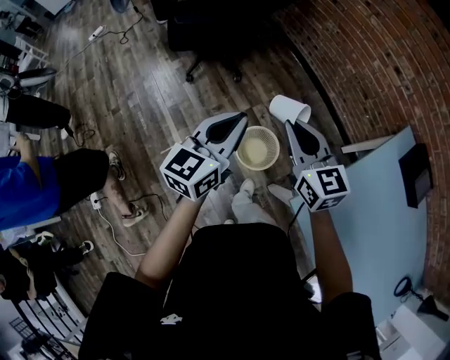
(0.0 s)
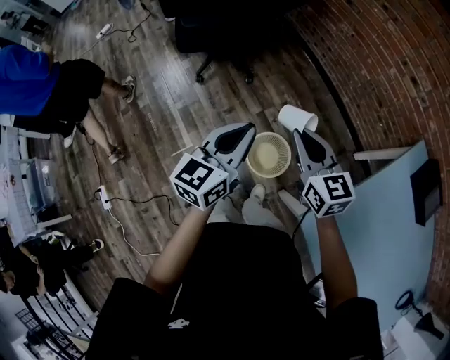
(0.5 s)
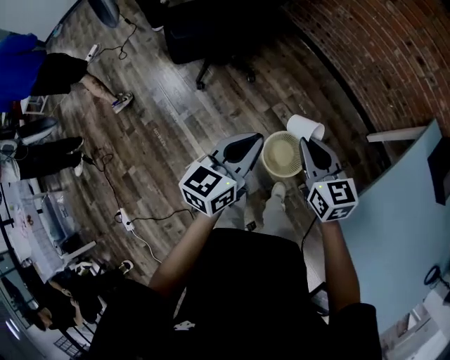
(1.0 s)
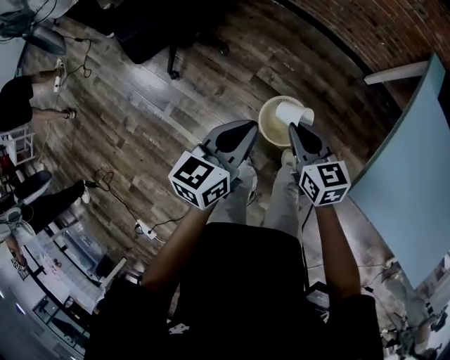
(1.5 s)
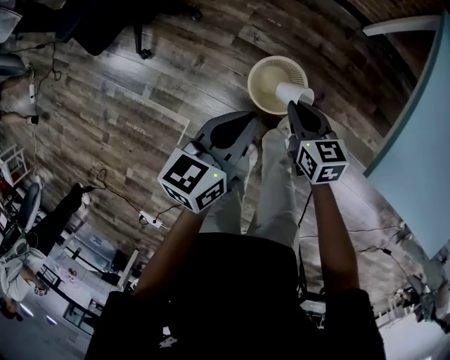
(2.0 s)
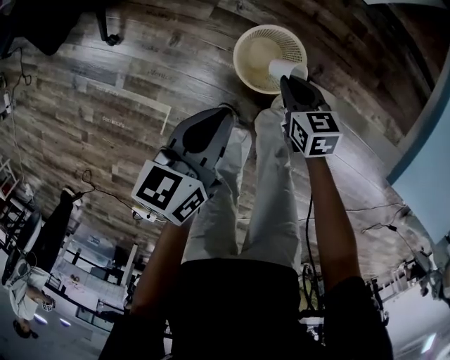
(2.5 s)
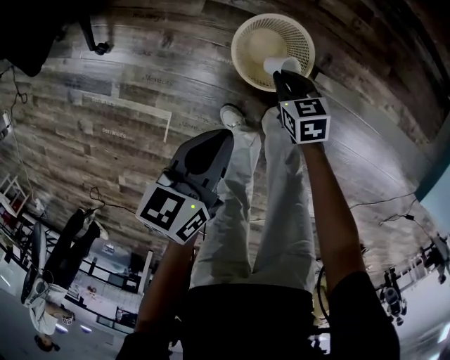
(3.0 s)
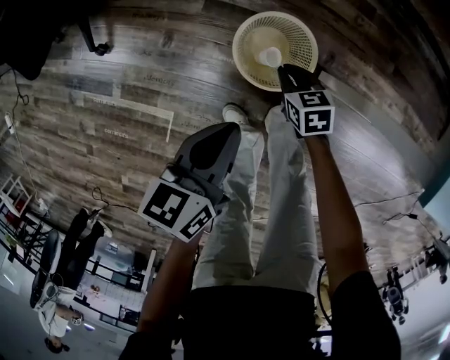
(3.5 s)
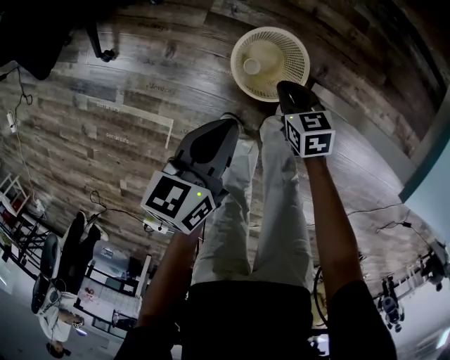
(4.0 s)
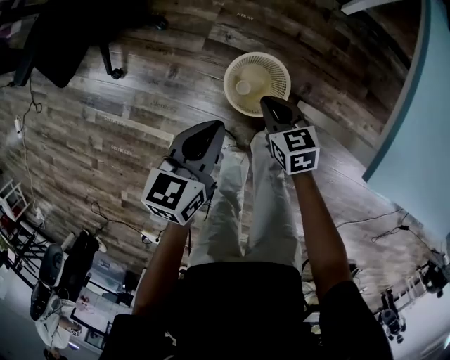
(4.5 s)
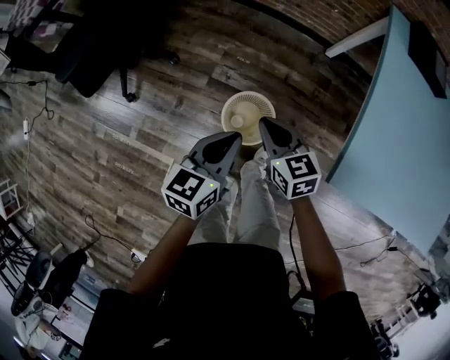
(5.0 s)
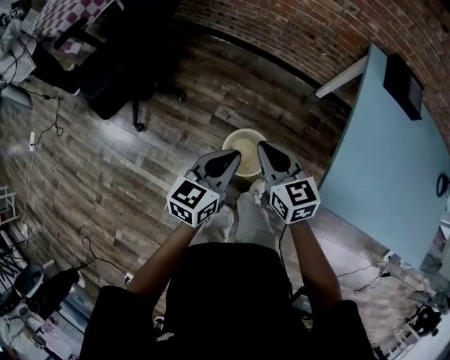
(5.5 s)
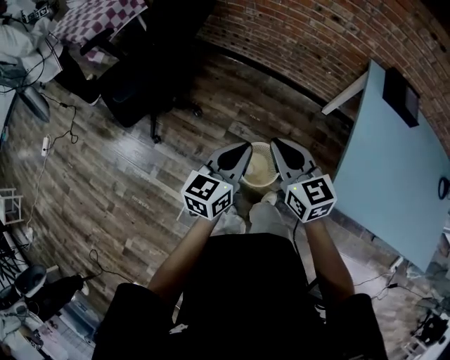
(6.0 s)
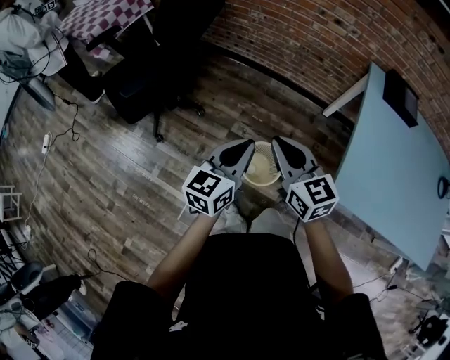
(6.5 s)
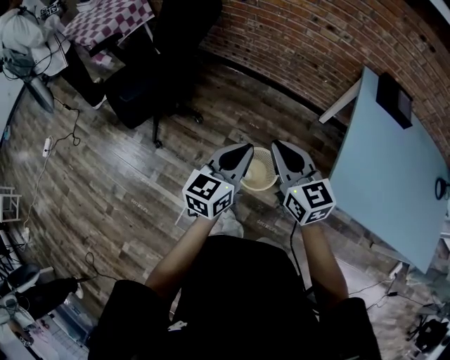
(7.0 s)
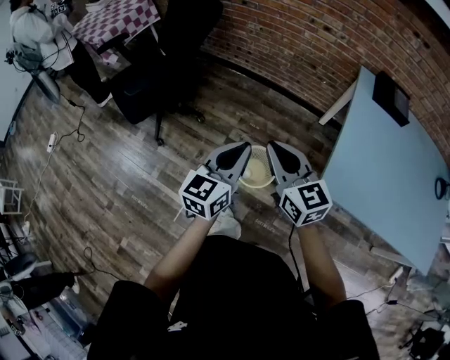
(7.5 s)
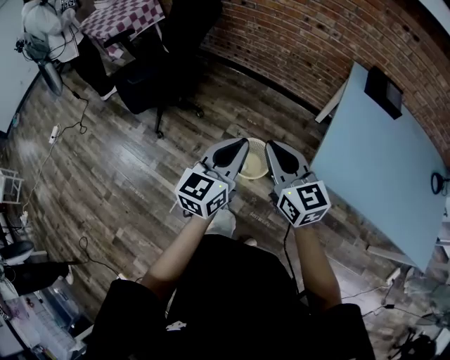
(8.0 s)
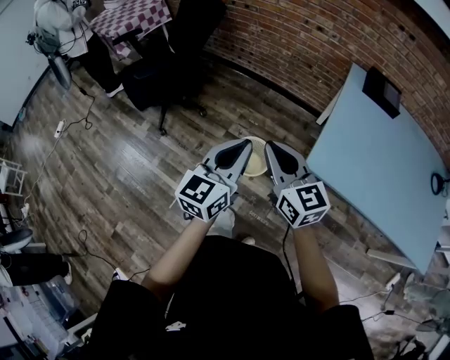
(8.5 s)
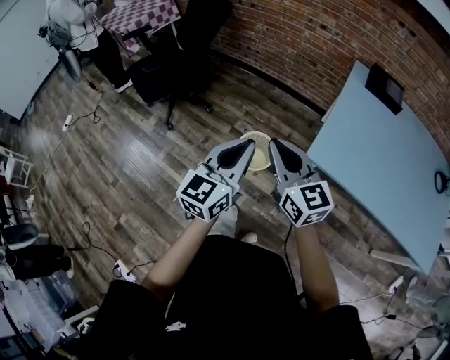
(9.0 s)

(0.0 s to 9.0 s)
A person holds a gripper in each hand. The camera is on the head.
0.0 s - 2.0 s: The grippers both shift downward by approximately 30 cm. The left gripper changes its angle by some 40 degrees. The right gripper turns by about 50 degrees.
2.0 s - 4.5 s: Both grippers travel together downward, approximately 10 cm.
4.5 s - 7.0 s: Both grippers move upward, approximately 35 cm. The left gripper rotates approximately 30 degrees. Meanwhile the right gripper tilts its fingers about 30 degrees upward.
7.0 s - 9.0 s: The two grippers go some 25 cm backward.

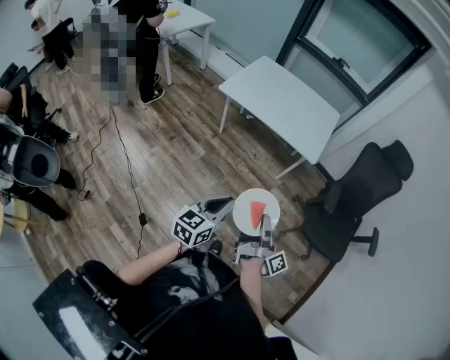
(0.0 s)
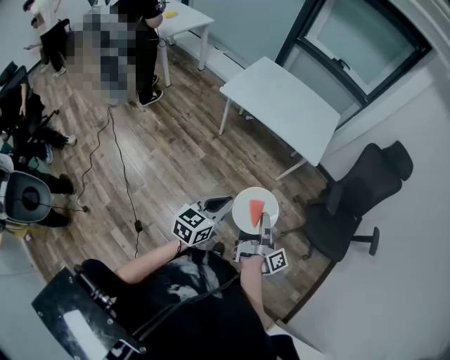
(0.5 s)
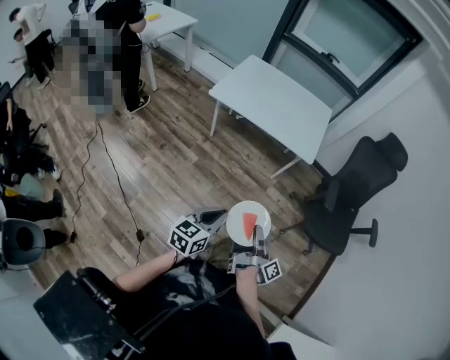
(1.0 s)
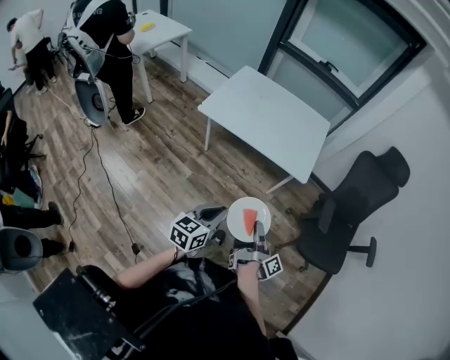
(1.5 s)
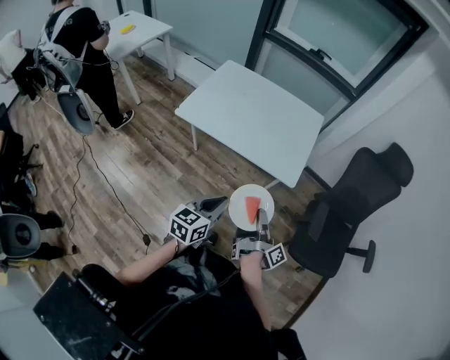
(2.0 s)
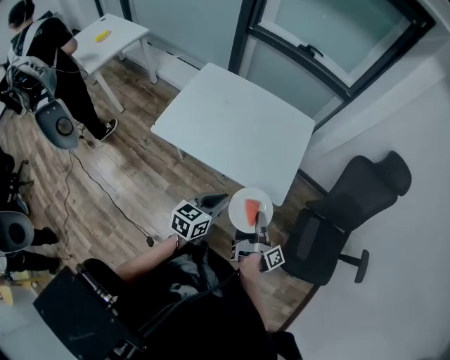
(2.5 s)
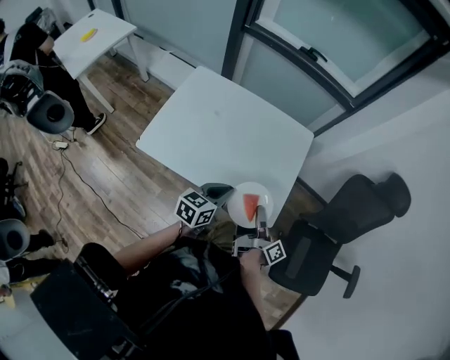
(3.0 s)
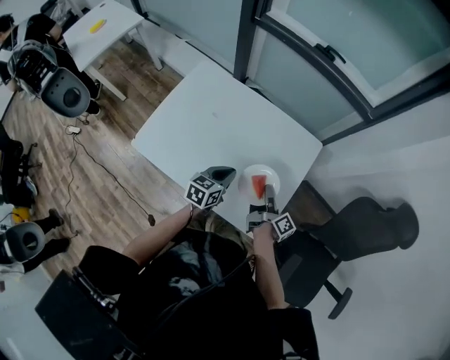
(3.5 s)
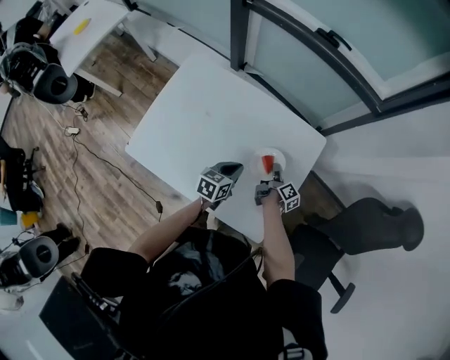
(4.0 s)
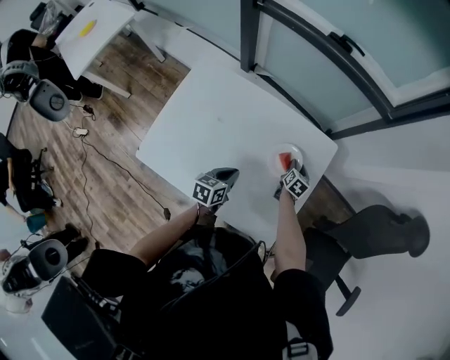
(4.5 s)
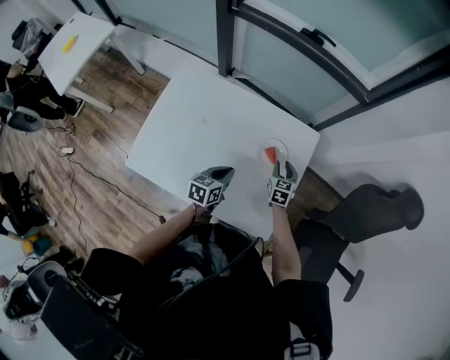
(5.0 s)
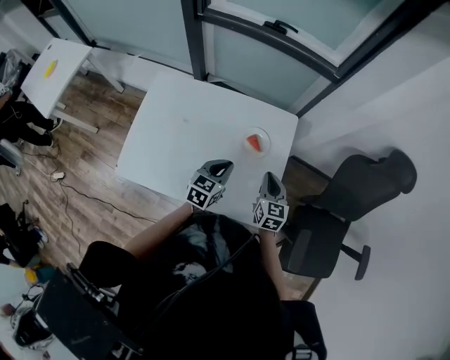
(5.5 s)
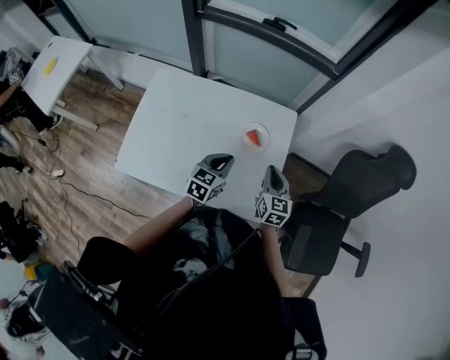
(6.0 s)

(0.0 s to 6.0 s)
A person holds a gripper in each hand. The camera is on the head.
0.0 s - 2.0 s: The left gripper ends up about 30 cm from where it was.
2.0 s - 4.0 s: The left gripper changes place by roughly 60 cm.
4.0 s - 6.0 s: The left gripper heads upward, covering roughly 10 cm, and rotates some 20 degrees.

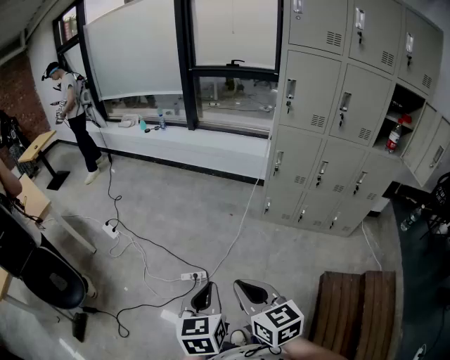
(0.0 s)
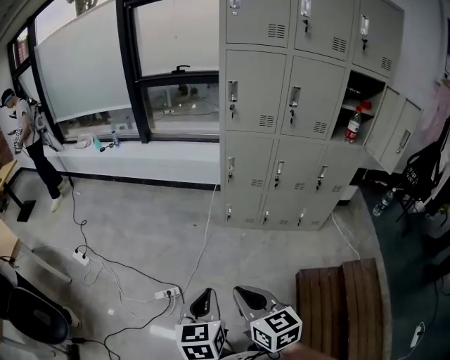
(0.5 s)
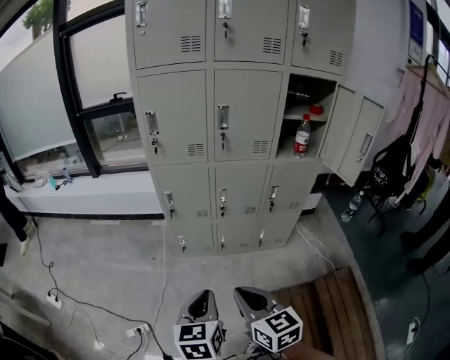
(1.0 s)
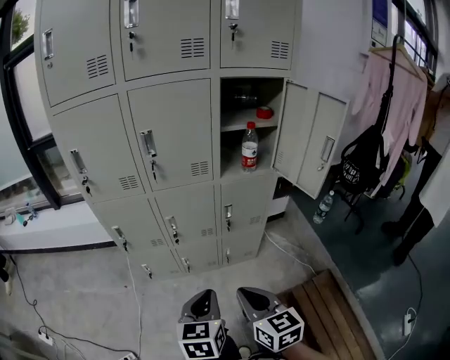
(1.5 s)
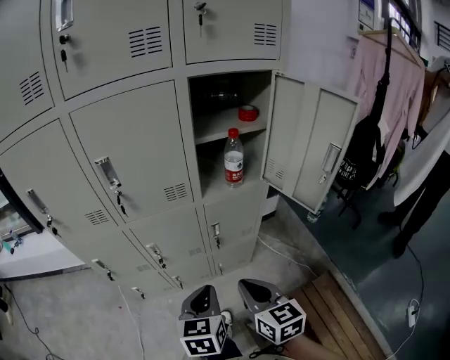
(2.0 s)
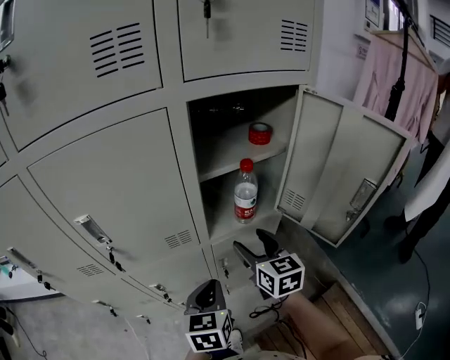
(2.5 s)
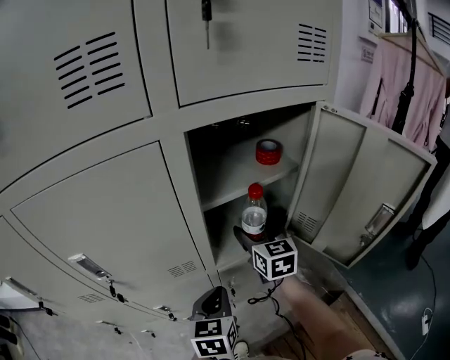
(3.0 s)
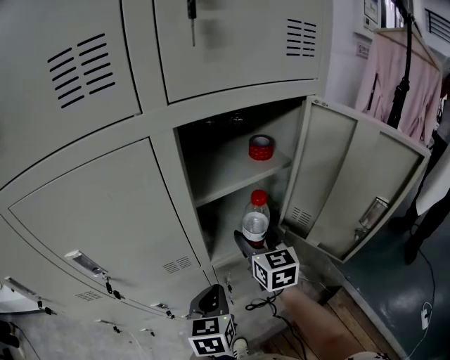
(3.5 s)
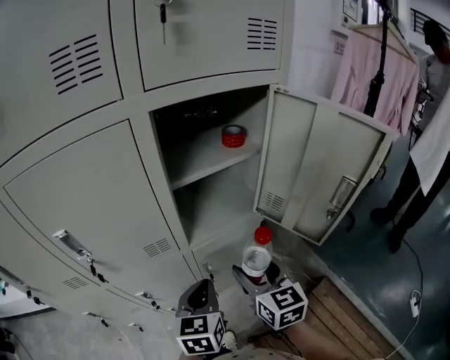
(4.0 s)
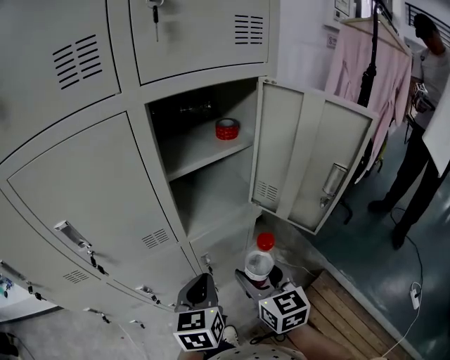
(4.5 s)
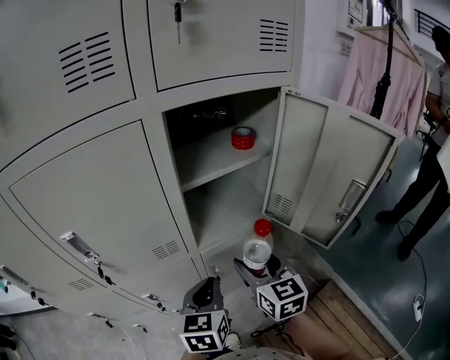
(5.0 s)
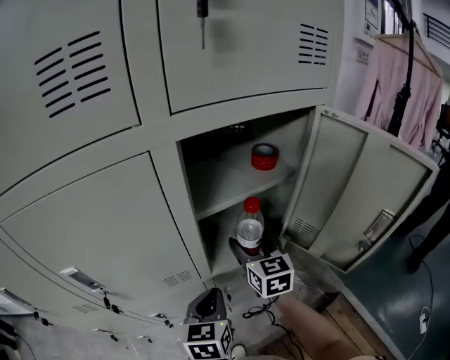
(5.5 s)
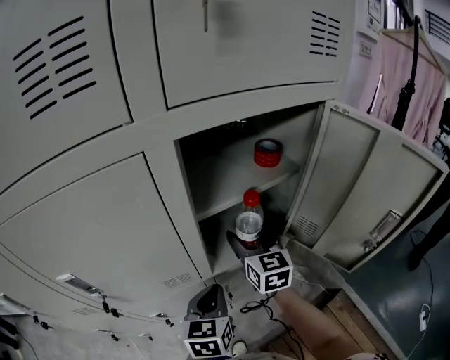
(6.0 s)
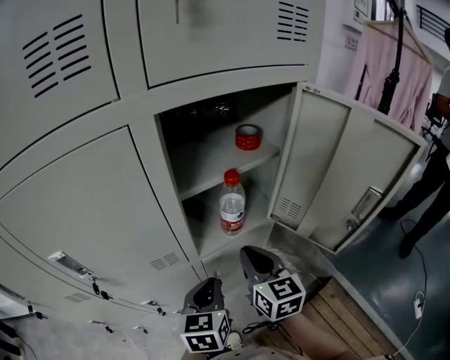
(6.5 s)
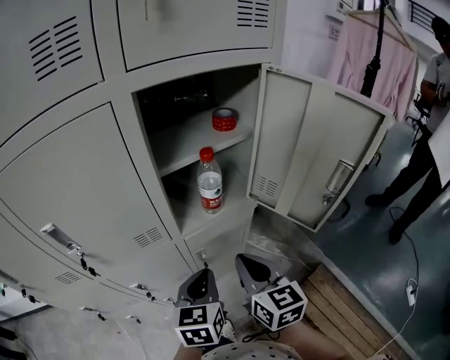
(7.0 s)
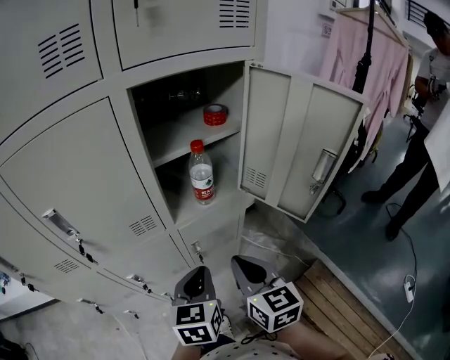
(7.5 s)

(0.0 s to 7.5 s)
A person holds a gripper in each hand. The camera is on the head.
0.0 s - 2.0 s: Both grippers are carried approximately 80 cm. The left gripper changes its angle by about 40 degrees. Meanwhile the right gripper swivels about 40 degrees.
2.0 s - 4.0 s: The grippers both shift forward by roughly 20 cm. The right gripper opens its fingers.
4.0 s - 5.5 s: The left gripper shifts roughly 5 cm forward. The right gripper shifts approximately 20 cm forward.
5.5 s - 7.5 s: The left gripper is displaced backward and to the right by roughly 10 cm; the right gripper goes about 25 cm backward, and closes up.

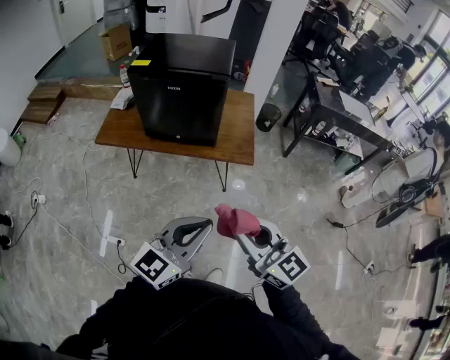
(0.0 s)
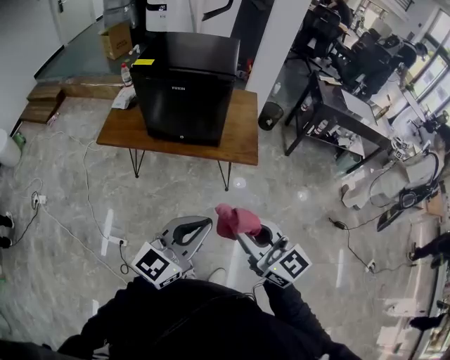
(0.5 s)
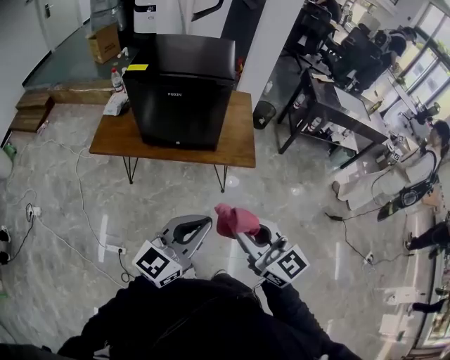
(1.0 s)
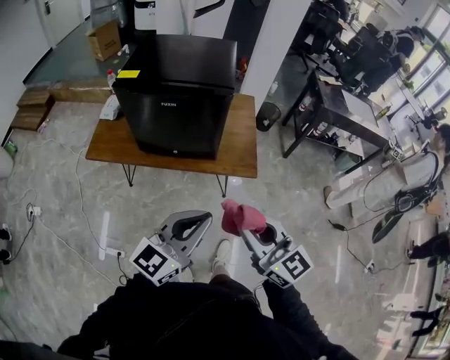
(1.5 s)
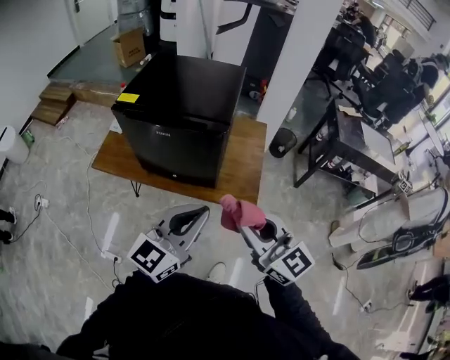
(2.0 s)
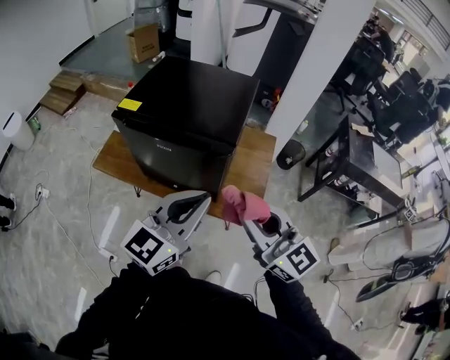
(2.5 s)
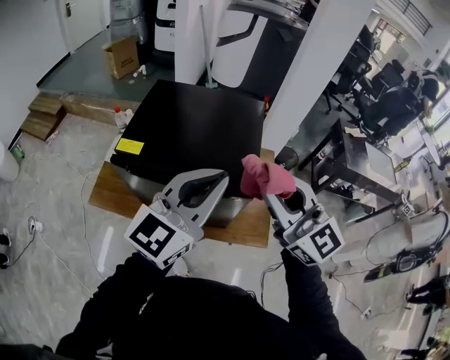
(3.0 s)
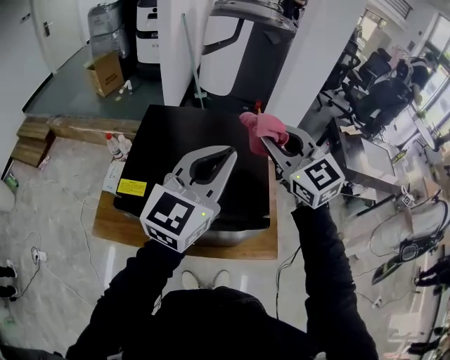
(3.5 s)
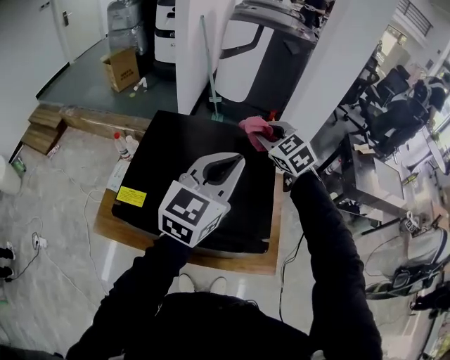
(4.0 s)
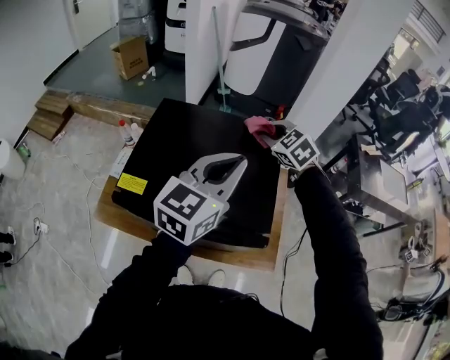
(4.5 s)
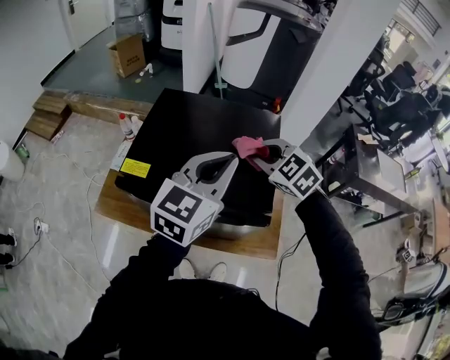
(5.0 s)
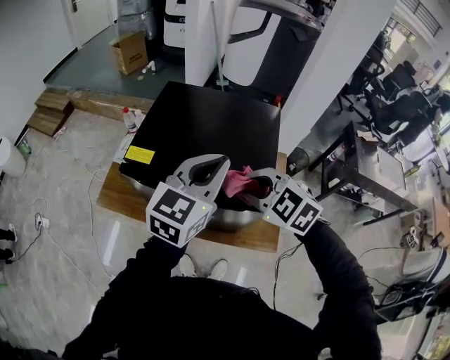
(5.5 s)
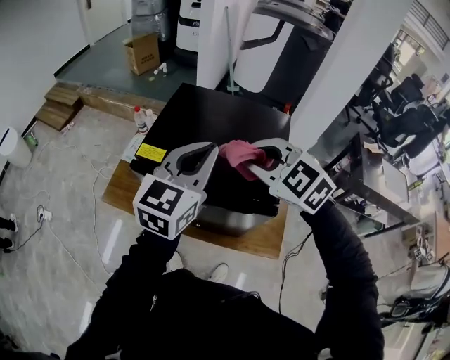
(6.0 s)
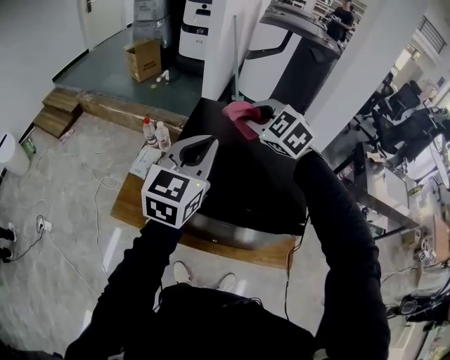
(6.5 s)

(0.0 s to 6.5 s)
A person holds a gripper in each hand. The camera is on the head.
0.0 s - 2.0 s: Both grippers travel together forward, roughly 30 cm.
2.0 s - 4.5 s: Both grippers are carried forward, approximately 50 cm. The right gripper tips its fingers downward by some 40 degrees.
4.5 s - 6.5 s: The right gripper heads to the left and upward, covering about 25 cm, and reaches approximately 30 cm backward, then returns. The left gripper travels to the left by about 20 cm.
